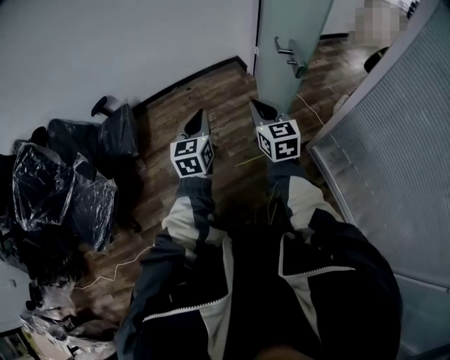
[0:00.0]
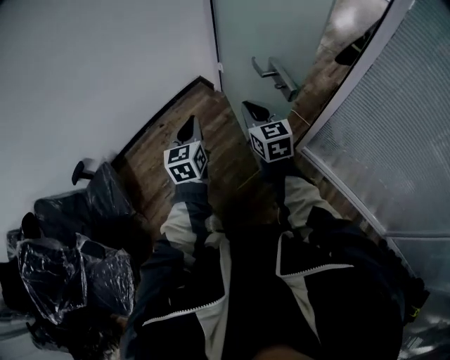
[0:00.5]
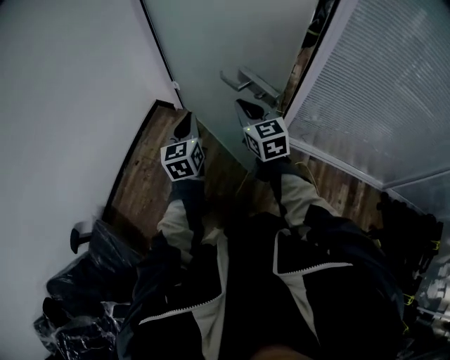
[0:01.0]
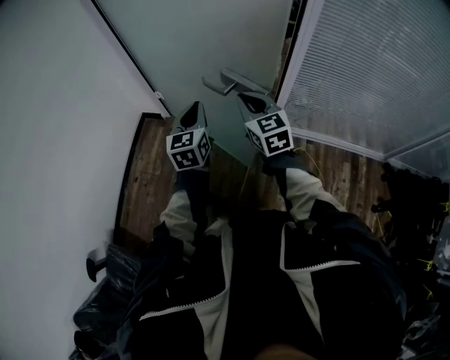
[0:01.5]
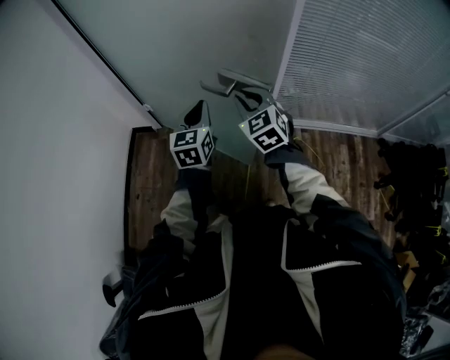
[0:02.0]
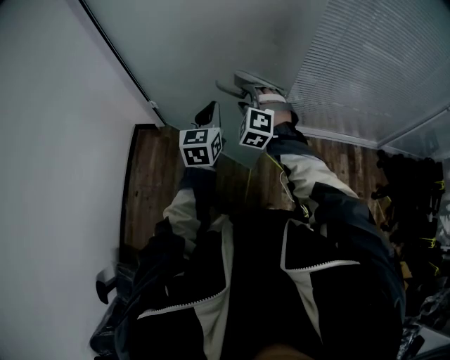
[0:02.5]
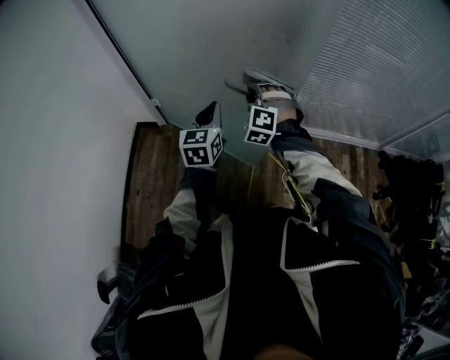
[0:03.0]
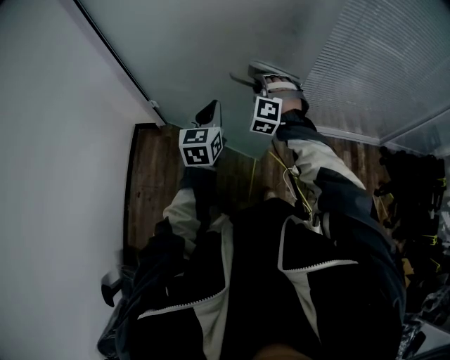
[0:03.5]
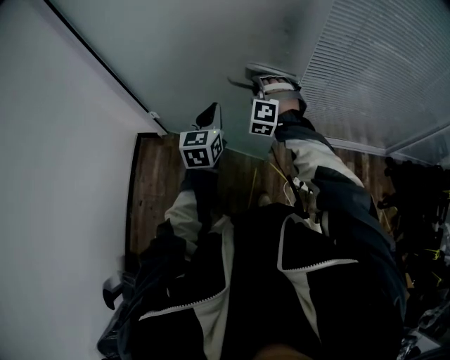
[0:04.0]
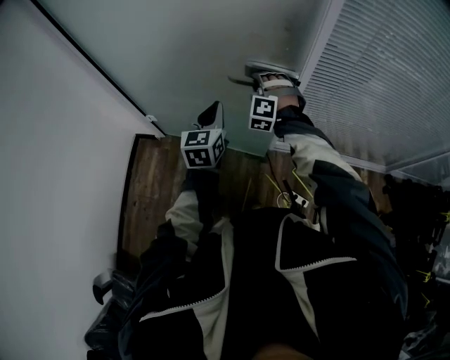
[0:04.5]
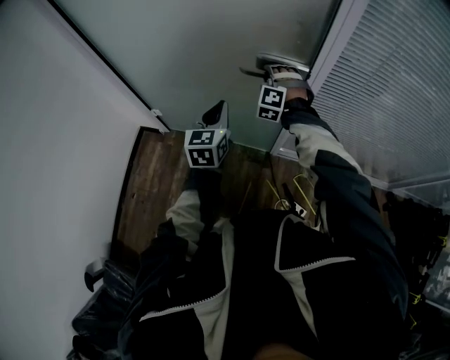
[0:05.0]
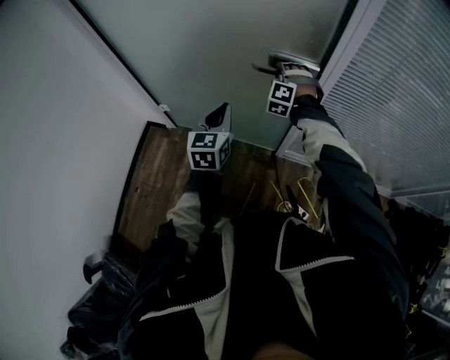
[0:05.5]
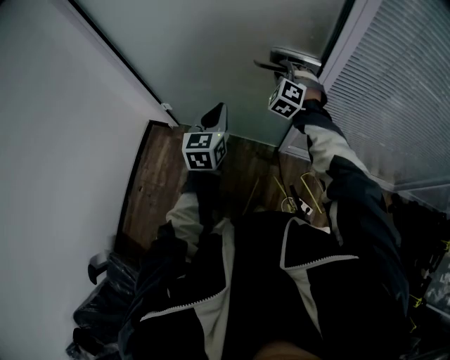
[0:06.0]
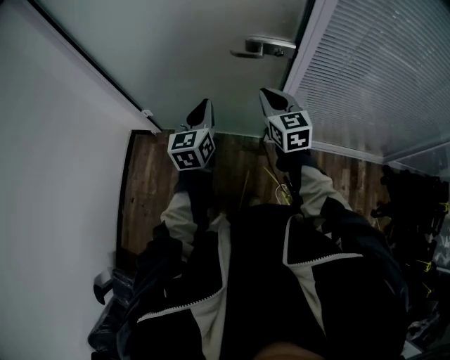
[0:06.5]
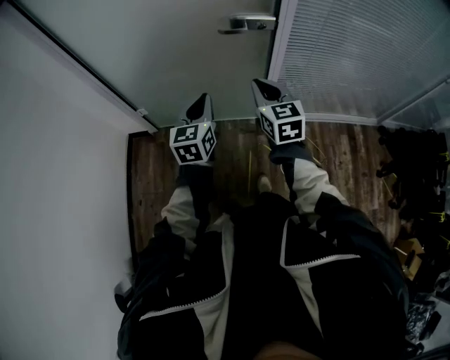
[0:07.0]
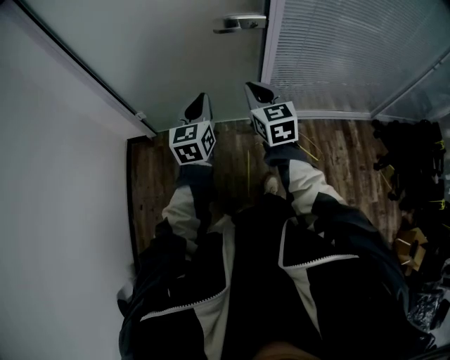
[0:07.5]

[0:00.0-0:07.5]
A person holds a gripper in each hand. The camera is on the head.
0:00.0 to 0:02.0: The right gripper shifts by roughly 25 cm, and turns by some 60 degrees. Meanwhile the left gripper changes place by some 40 cm, and swivels approximately 60 degrees.
0:02.0 to 0:04.0: The left gripper heads forward, covering roughly 10 cm. The right gripper moves forward, about 20 cm, and twists about 50 degrees counterclockwise, seen from behind.
0:04.0 to 0:05.5: The left gripper shifts about 10 cm forward; the right gripper is displaced forward by roughly 20 cm.
0:05.5 to 0:07.5: The left gripper is displaced backward by some 20 cm. The right gripper heads backward, covering about 35 cm, twists roughly 80 degrees clockwise, seen from behind, and closes up.

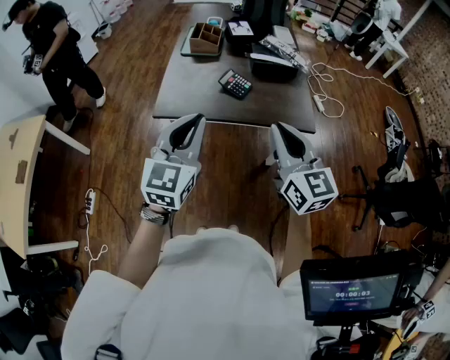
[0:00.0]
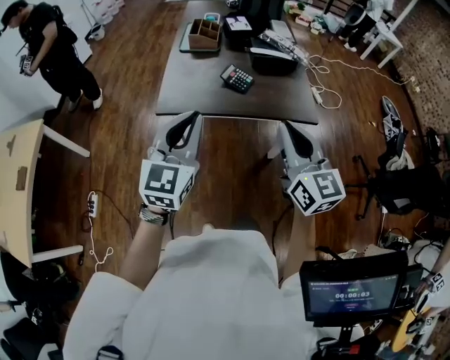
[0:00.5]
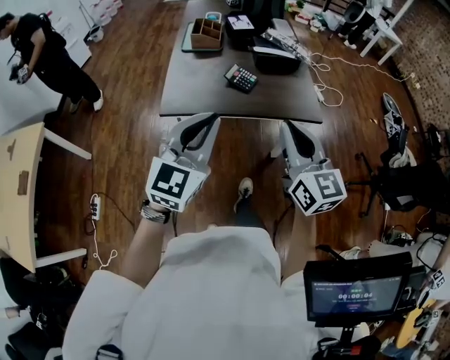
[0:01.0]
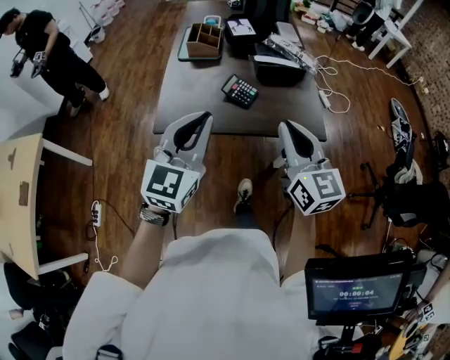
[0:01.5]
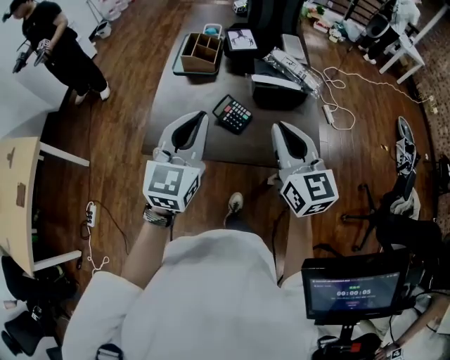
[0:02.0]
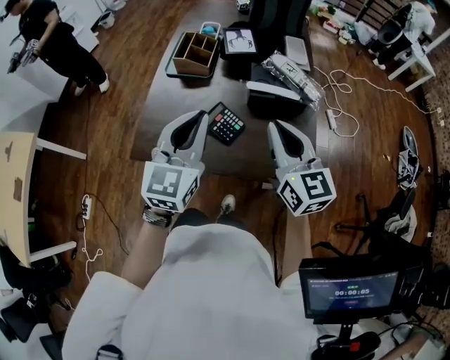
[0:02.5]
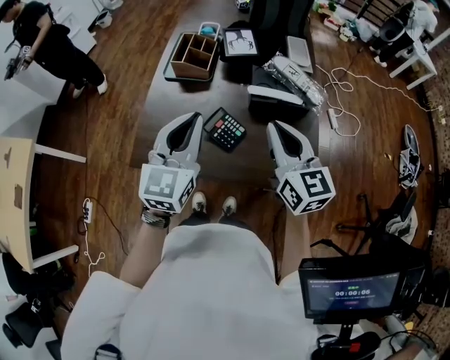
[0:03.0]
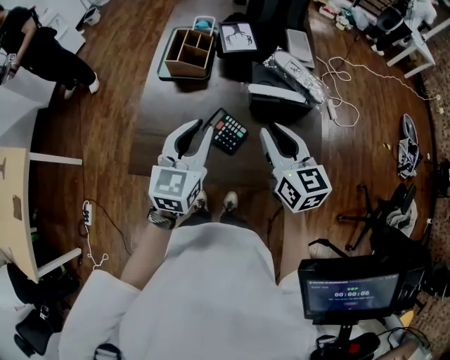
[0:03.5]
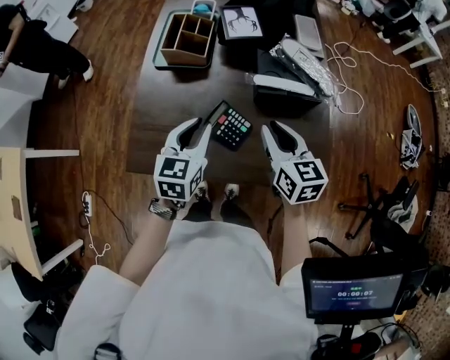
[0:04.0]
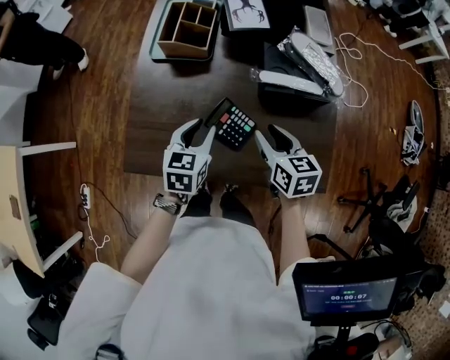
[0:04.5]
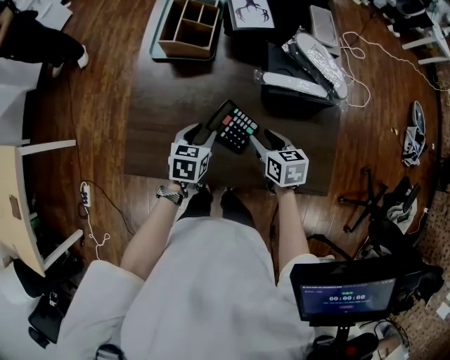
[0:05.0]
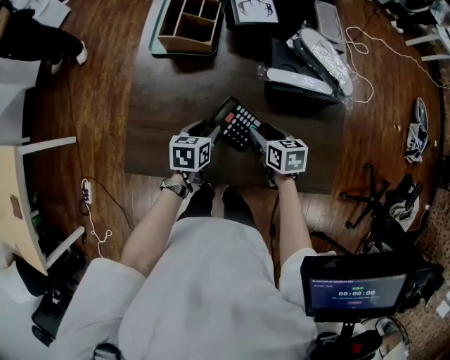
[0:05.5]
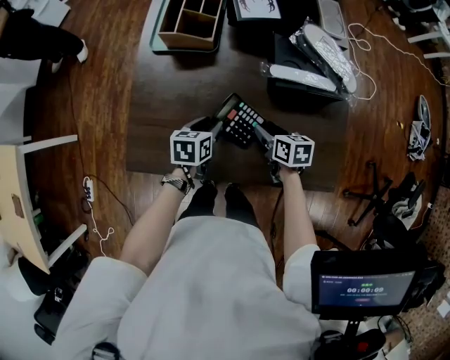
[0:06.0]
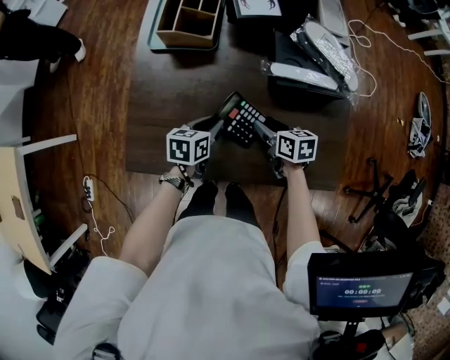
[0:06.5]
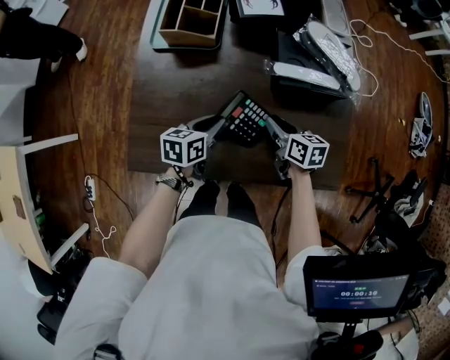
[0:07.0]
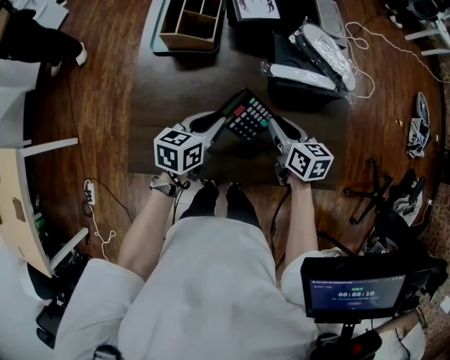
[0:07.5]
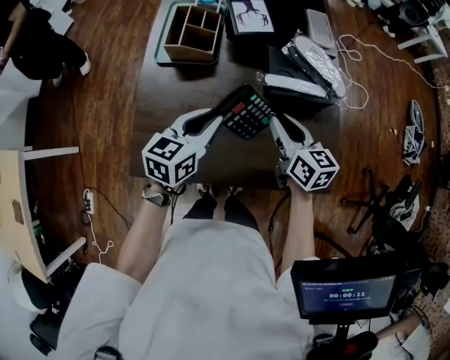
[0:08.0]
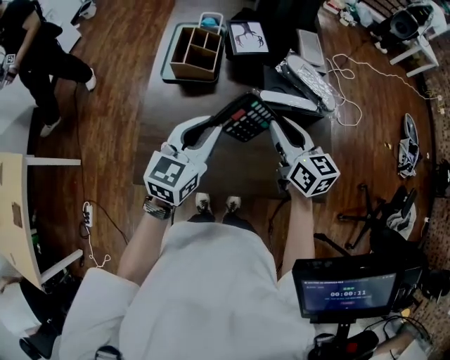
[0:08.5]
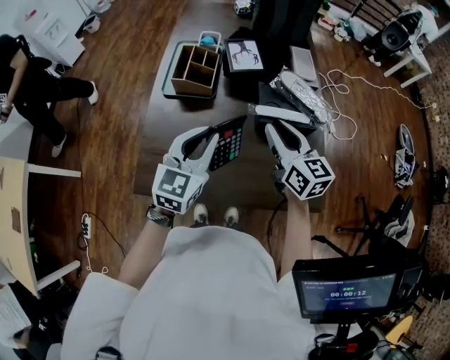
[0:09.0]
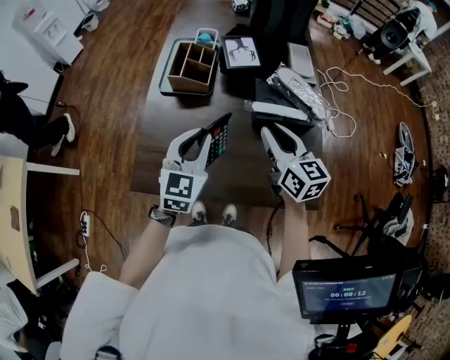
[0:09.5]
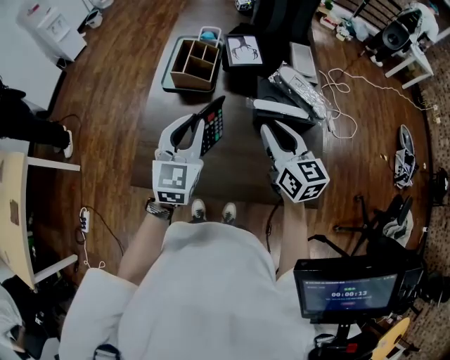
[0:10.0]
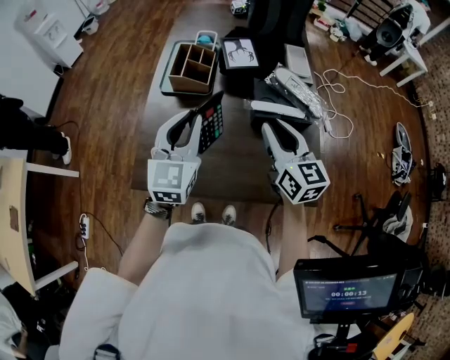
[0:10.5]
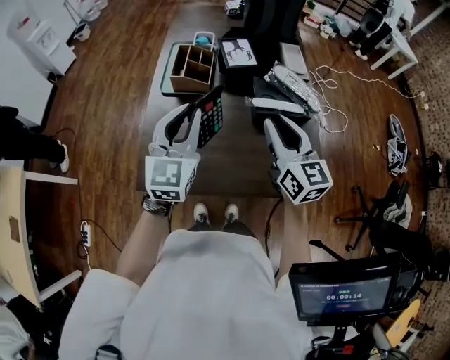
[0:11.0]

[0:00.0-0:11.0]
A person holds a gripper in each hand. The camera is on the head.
0:00.0 to 0:02.0: Both grippers move forward, about 20 cm.
0:02.0 to 0:03.5: The two grippers go roughly 15 cm forward and downward. The left gripper opens its fingers.
0:03.5 to 0:05.5: Both grippers move downward, roughly 25 cm. The left gripper tips its fingers downward by approximately 30 degrees, and opens up; the right gripper angles its fingers downward, by some 30 degrees, and opens its fingers.
0:05.5 to 0:07.5: The grippers both shift upward by some 10 cm. The left gripper closes up. The right gripper closes.
0:07.5 to 0:09.0: Both grippers move upward, about 20 cm. The right gripper rotates roughly 30 degrees. Meanwhile the left gripper changes its angle by roughly 40 degrees.
0:09.0 to 0:11.0: The left gripper goes about 10 cm upward and to the left; the right gripper travels upward by roughly 5 cm.

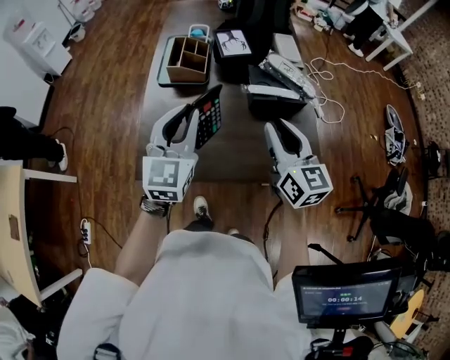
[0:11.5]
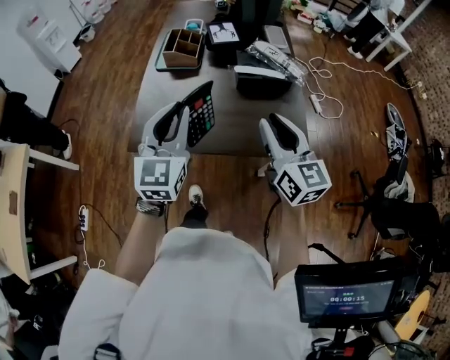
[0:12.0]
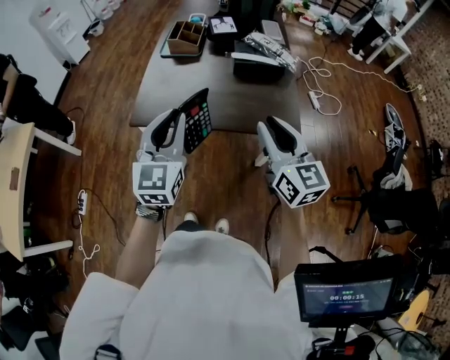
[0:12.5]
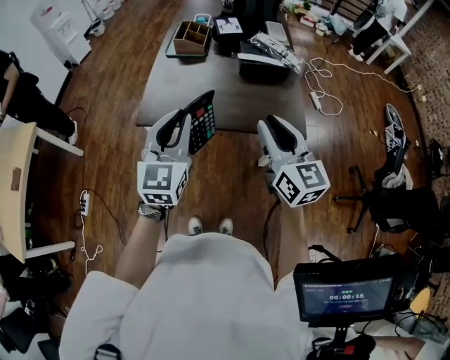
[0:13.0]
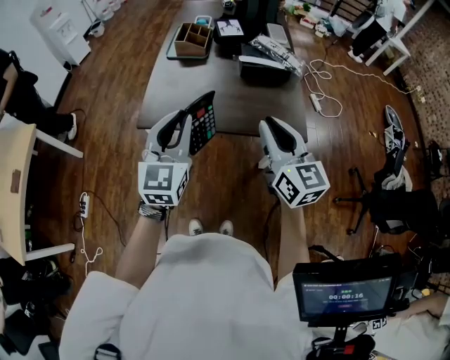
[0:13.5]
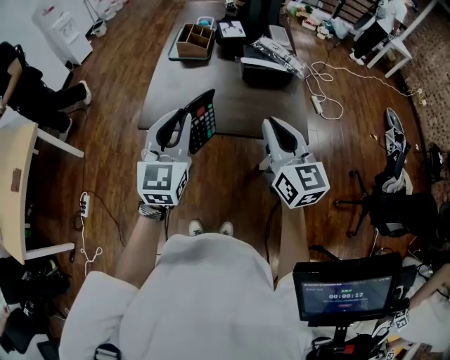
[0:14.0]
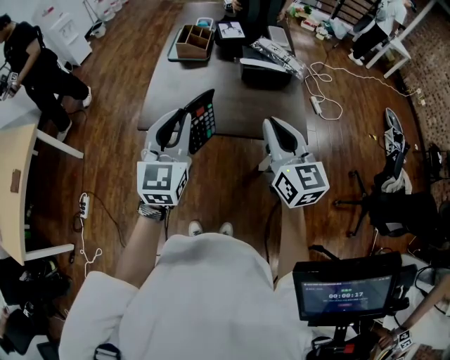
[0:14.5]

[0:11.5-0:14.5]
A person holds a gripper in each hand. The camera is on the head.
0:11.5 to 0:13.0: The two grippers go approximately 25 cm backward.
0:13.0 to 0:14.5: The right gripper closes.

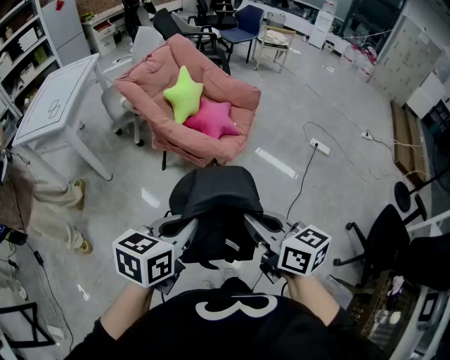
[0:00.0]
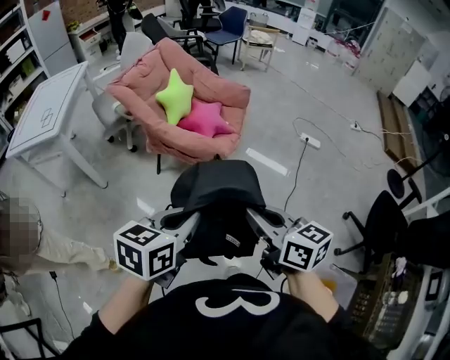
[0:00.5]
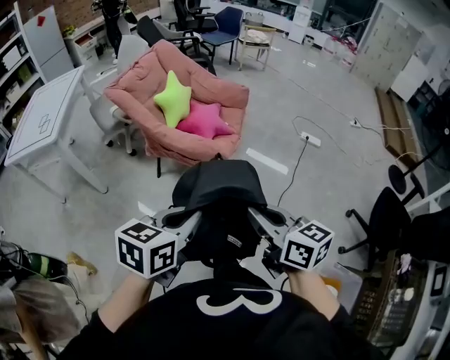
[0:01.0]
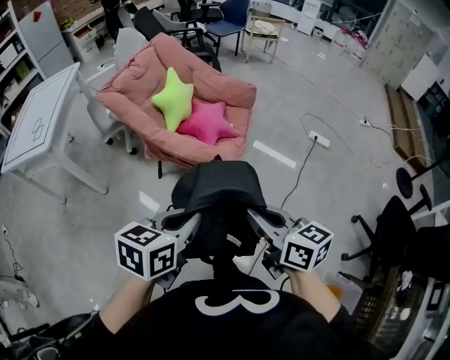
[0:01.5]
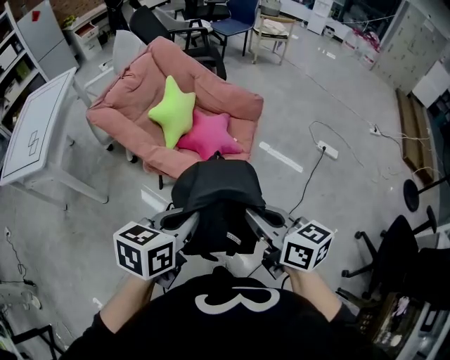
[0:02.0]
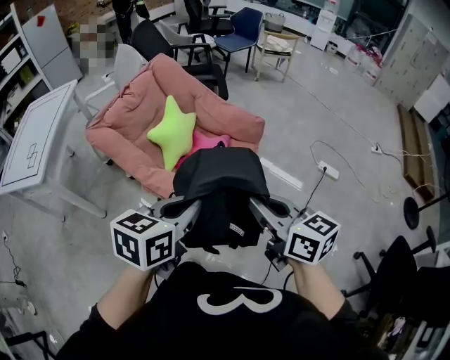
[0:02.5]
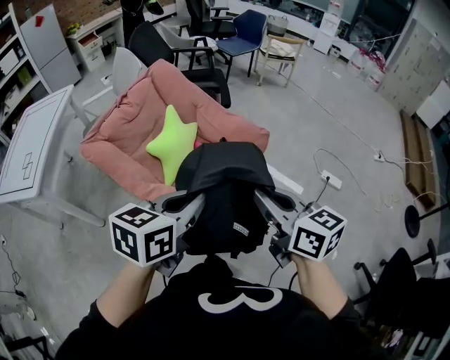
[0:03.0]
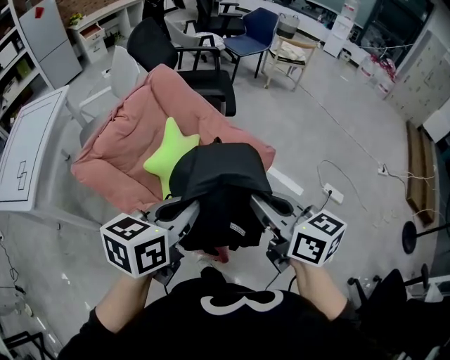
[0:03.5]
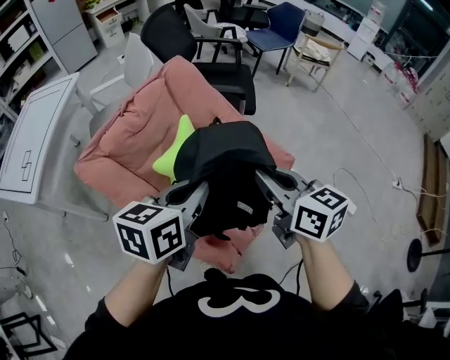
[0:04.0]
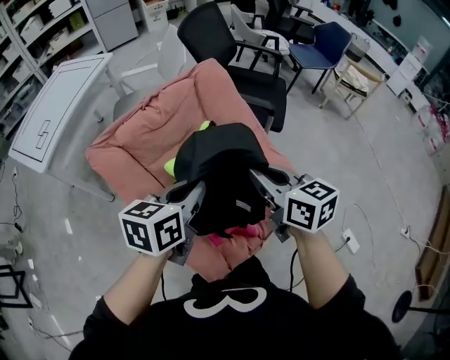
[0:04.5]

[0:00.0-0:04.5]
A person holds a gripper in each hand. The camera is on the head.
0:00.0 to 0:02.0: The grippers both shift forward by some 25 cm.
0:02.0 to 0:04.5: The two grippers travel together, about 50 cm. The left gripper turns by roughly 30 degrees; the right gripper turns by approximately 30 degrees.
